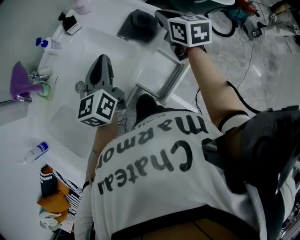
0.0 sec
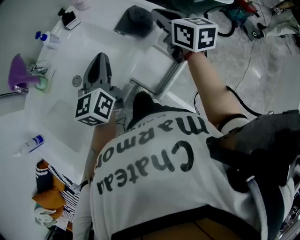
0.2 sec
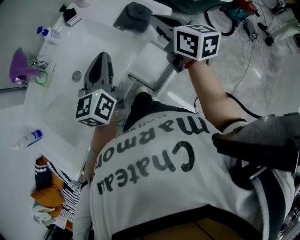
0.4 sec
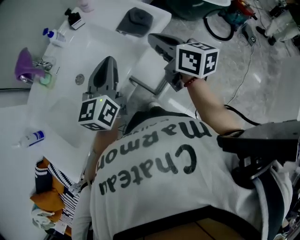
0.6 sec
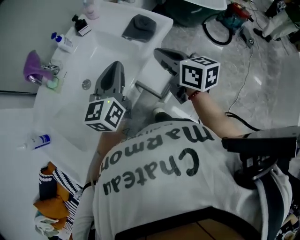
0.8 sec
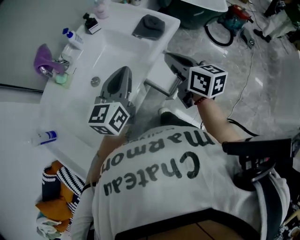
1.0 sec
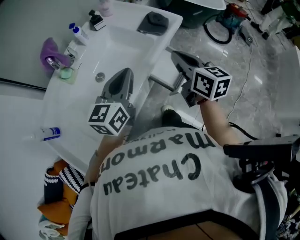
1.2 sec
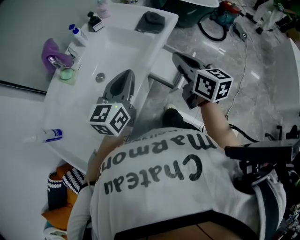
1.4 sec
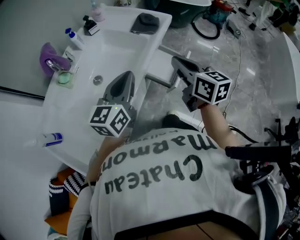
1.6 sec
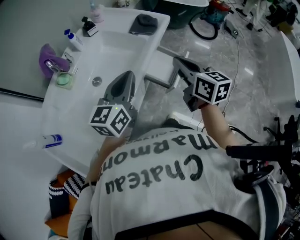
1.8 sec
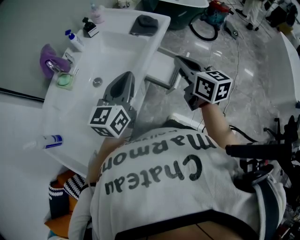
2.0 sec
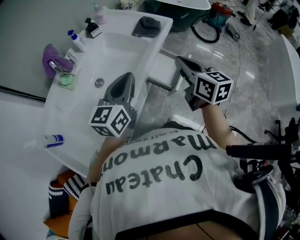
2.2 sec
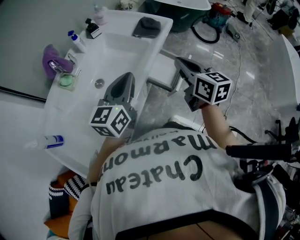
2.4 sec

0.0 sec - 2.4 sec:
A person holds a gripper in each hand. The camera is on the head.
0.0 sec - 1.2 sec: The left gripper is displaced backward by roughly 15 cm, and changes its angle by roughly 20 degrees; the right gripper travels backward by roughly 25 cm.
1.2 sec - 2.4 sec: The right gripper shifts approximately 5 cm backward.

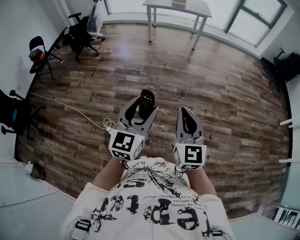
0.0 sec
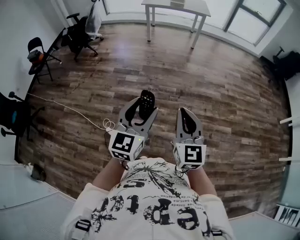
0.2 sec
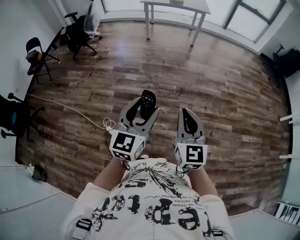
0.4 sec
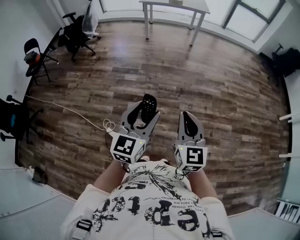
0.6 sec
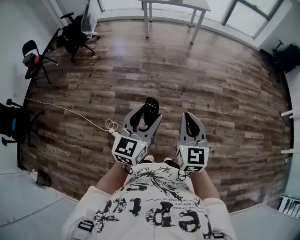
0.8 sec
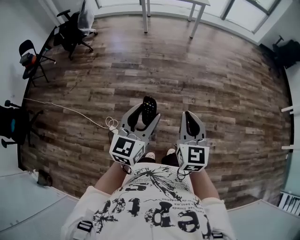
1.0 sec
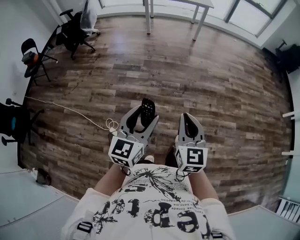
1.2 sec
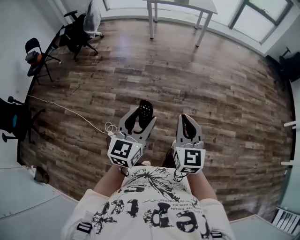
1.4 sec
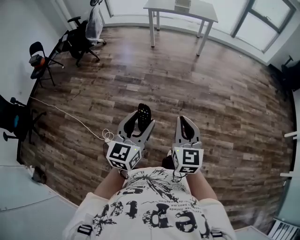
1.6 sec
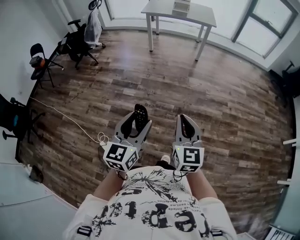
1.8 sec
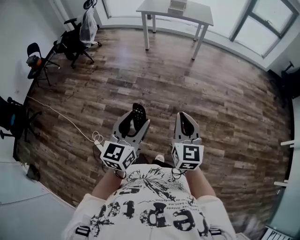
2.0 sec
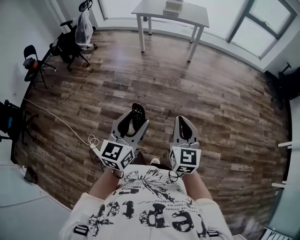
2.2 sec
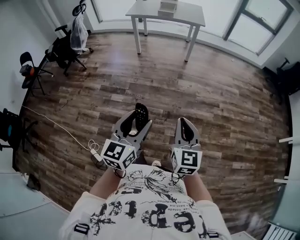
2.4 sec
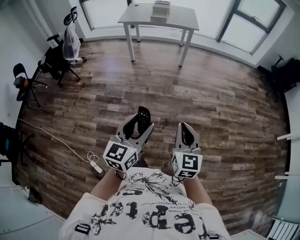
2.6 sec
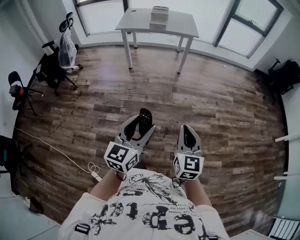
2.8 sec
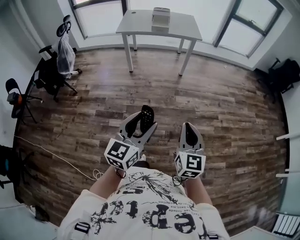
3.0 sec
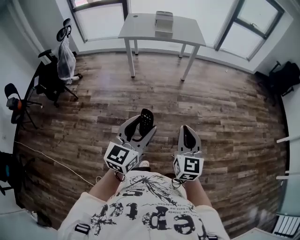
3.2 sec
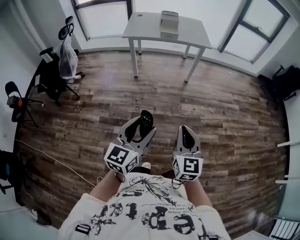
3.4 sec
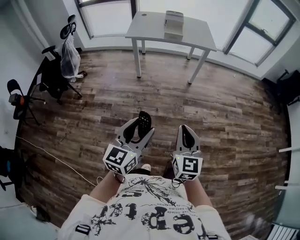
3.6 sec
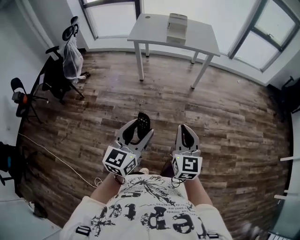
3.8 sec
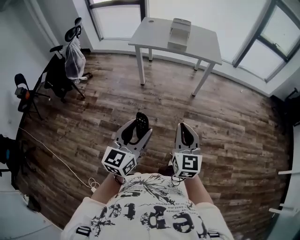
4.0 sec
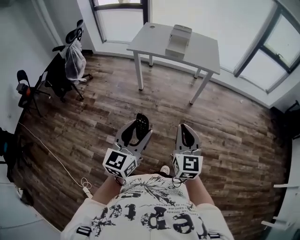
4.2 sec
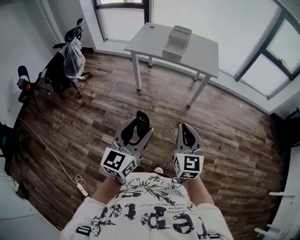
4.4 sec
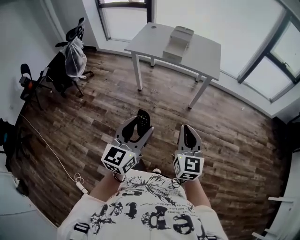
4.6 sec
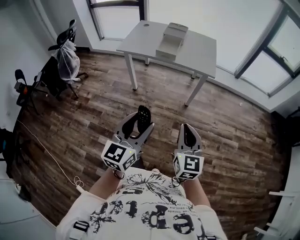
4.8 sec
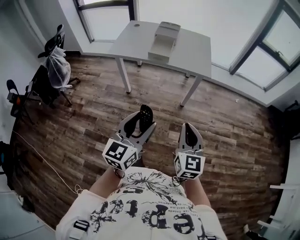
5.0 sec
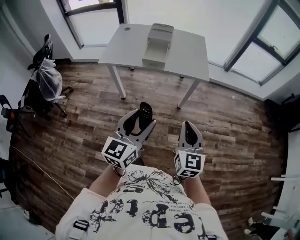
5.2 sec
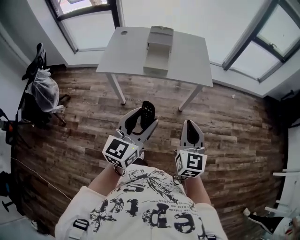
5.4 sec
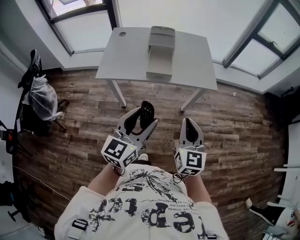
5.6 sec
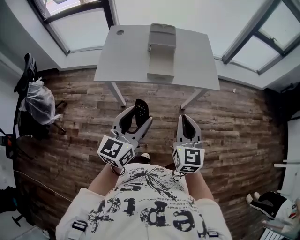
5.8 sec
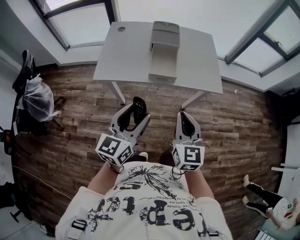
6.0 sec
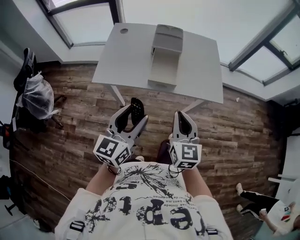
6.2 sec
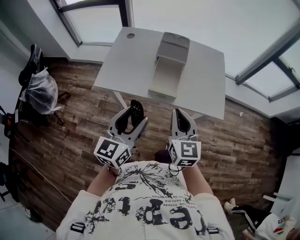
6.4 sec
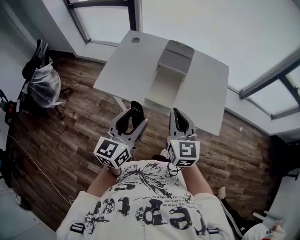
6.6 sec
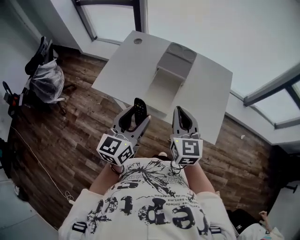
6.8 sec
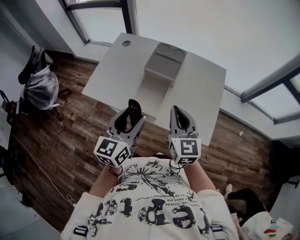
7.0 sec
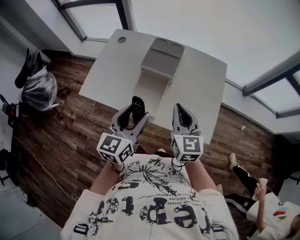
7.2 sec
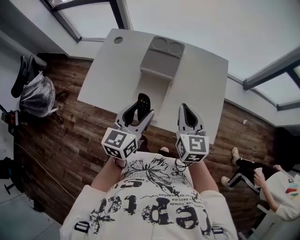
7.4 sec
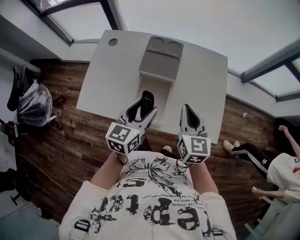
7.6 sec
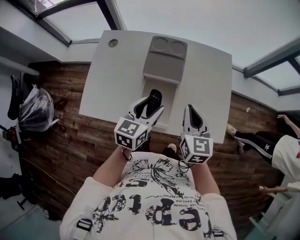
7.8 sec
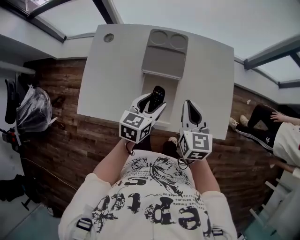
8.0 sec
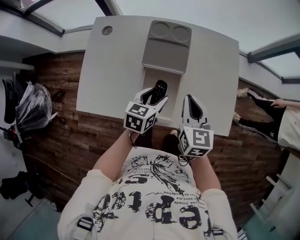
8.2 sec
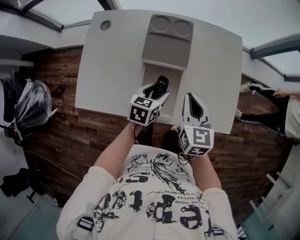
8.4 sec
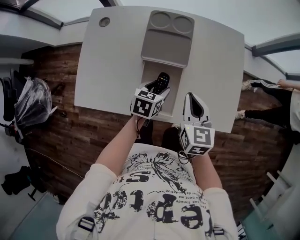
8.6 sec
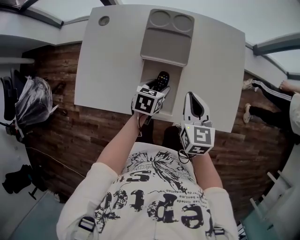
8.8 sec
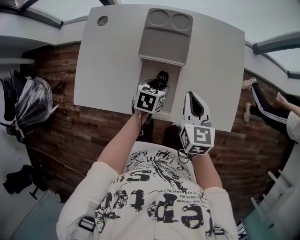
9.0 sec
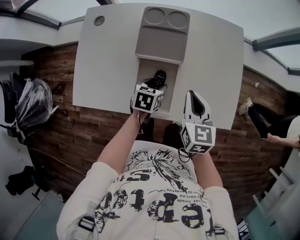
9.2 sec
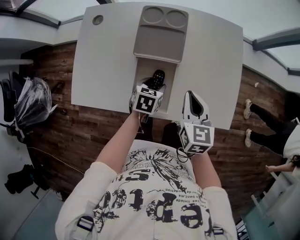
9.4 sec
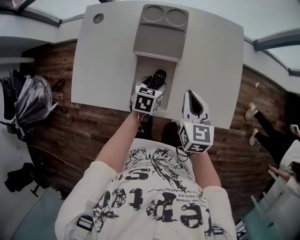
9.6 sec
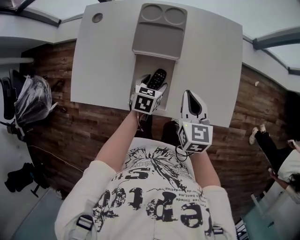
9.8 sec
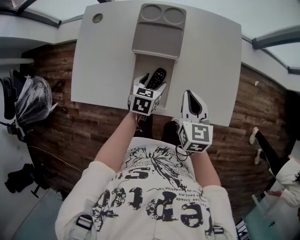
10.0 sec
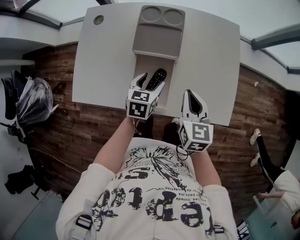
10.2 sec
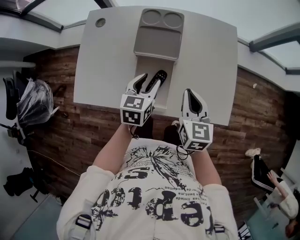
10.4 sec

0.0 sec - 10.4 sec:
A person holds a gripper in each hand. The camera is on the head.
0.0 sec - 1.4 sec: Both grippers move forward and downward, about 10 cm.
1.4 sec - 3.0 sec: The grippers both shift forward by about 40 cm.
3.0 sec - 4.4 sec: Both grippers travel together forward, approximately 30 cm.
4.4 sec - 6.0 sec: The pair of grippers is taken forward, roughly 50 cm.
6.0 sec - 7.4 sec: The two grippers go roughly 35 cm forward and to the right.
7.4 sec - 9.0 sec: The left gripper moves downward and forward, about 25 cm, and angles its fingers downward, by approximately 40 degrees. Meanwhile the right gripper travels downward and forward by approximately 10 cm.
9.0 sec - 10.4 sec: The left gripper shifts roughly 10 cm upward, and rotates some 20 degrees.

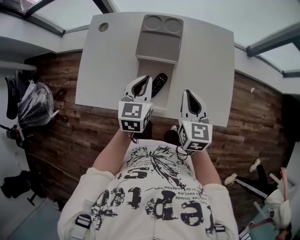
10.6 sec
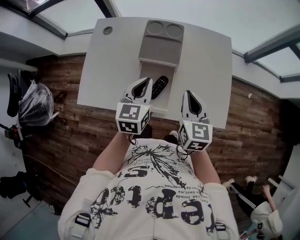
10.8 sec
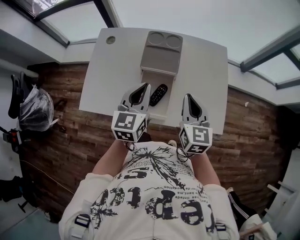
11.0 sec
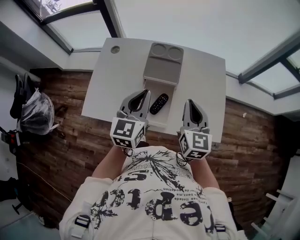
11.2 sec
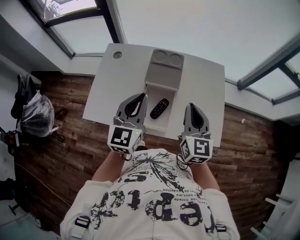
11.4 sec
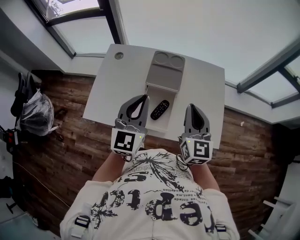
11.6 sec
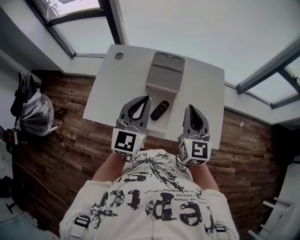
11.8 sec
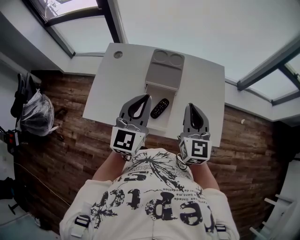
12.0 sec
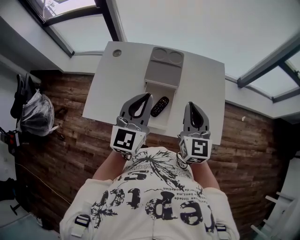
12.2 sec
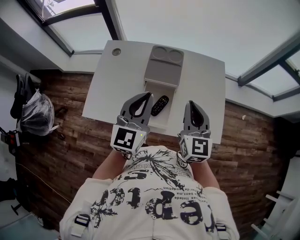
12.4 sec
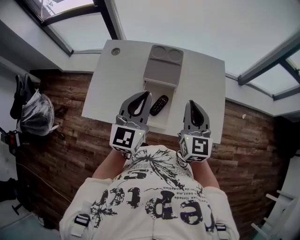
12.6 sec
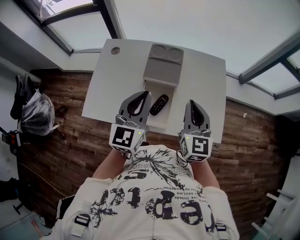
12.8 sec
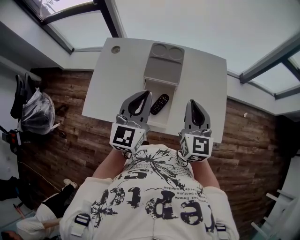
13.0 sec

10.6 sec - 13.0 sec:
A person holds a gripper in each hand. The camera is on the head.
10.6 sec - 11.8 sec: Both grippers move upward, roughly 15 cm. The left gripper turns by approximately 30 degrees. The right gripper rotates some 20 degrees.
11.8 sec - 13.0 sec: The grippers move only a little.

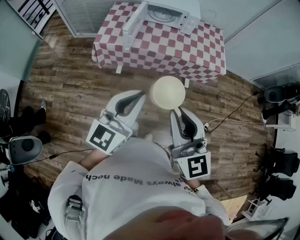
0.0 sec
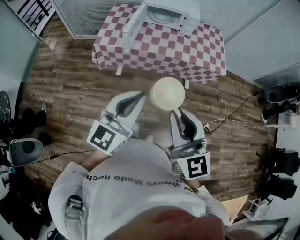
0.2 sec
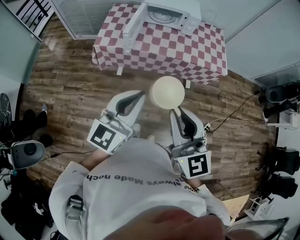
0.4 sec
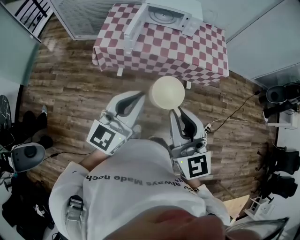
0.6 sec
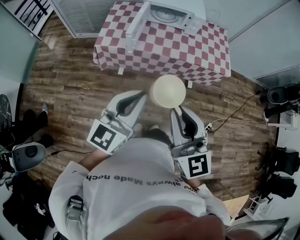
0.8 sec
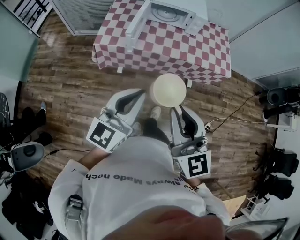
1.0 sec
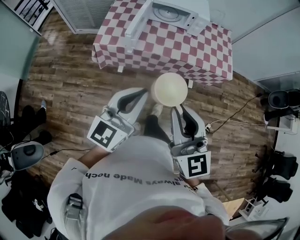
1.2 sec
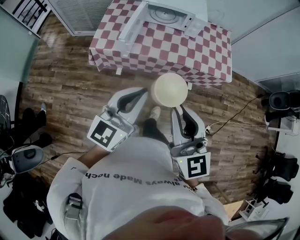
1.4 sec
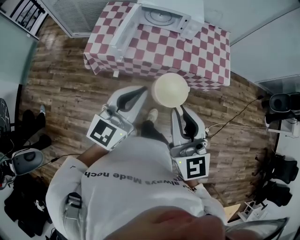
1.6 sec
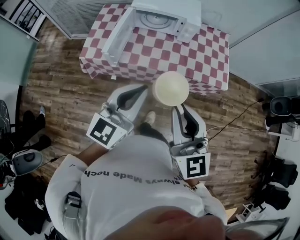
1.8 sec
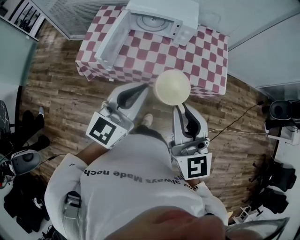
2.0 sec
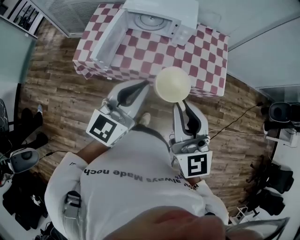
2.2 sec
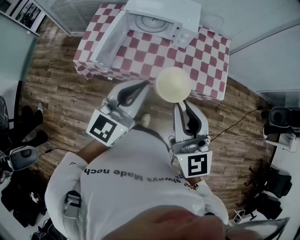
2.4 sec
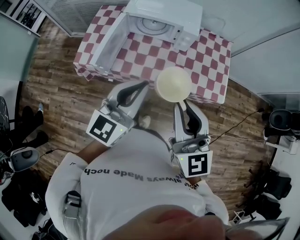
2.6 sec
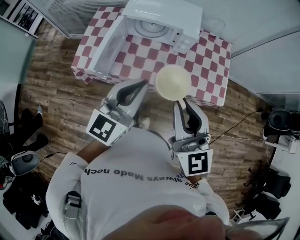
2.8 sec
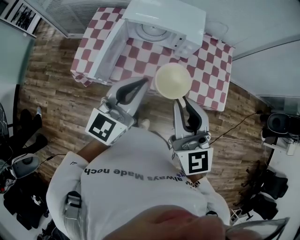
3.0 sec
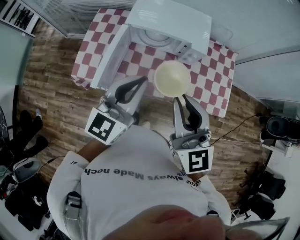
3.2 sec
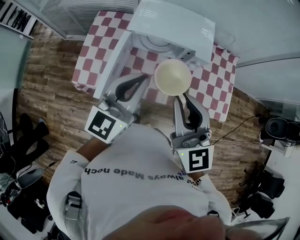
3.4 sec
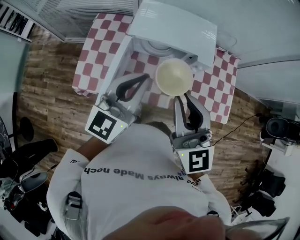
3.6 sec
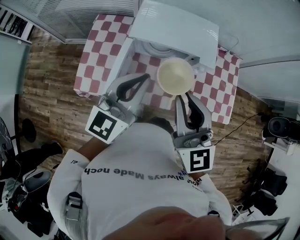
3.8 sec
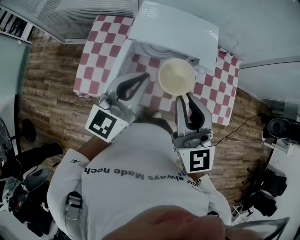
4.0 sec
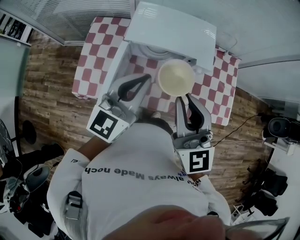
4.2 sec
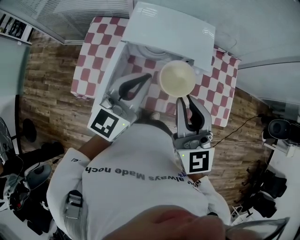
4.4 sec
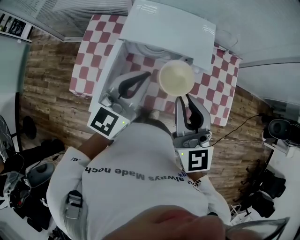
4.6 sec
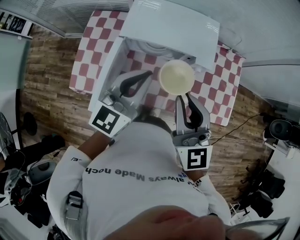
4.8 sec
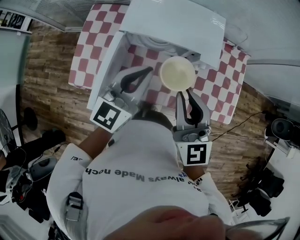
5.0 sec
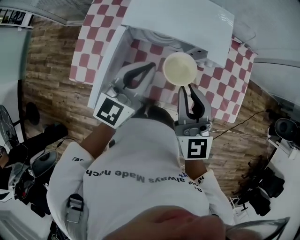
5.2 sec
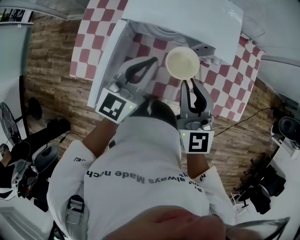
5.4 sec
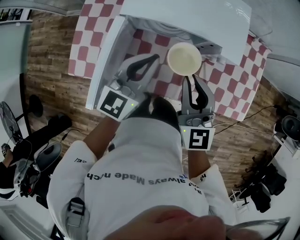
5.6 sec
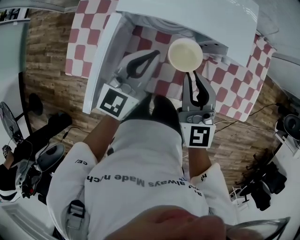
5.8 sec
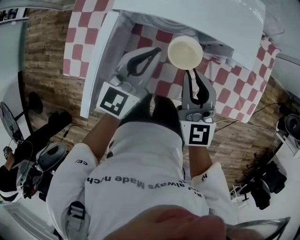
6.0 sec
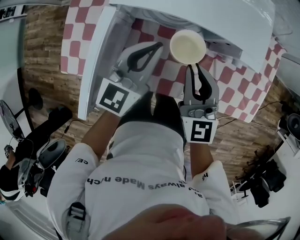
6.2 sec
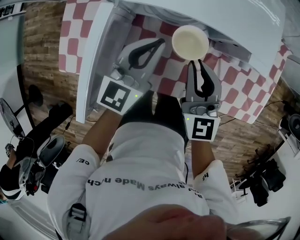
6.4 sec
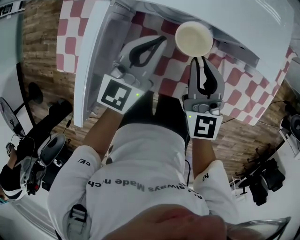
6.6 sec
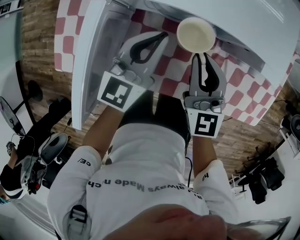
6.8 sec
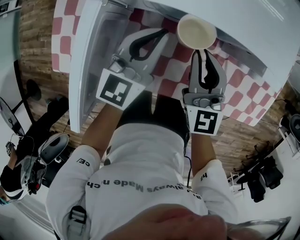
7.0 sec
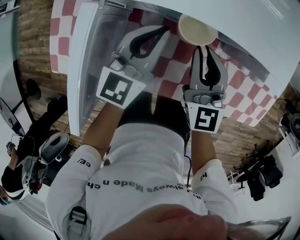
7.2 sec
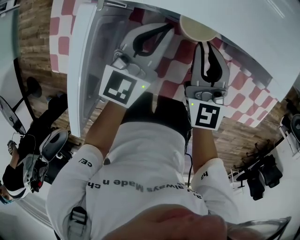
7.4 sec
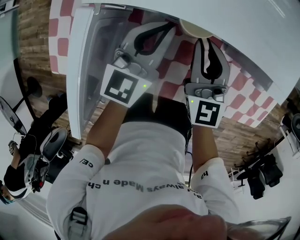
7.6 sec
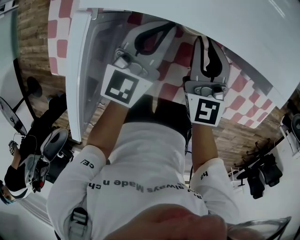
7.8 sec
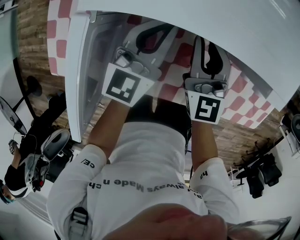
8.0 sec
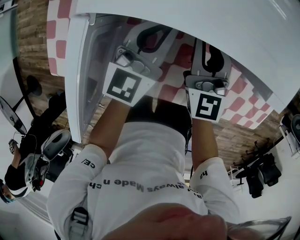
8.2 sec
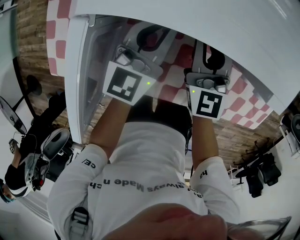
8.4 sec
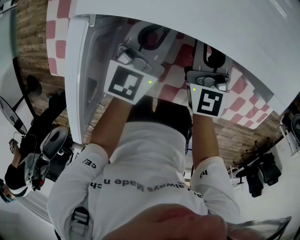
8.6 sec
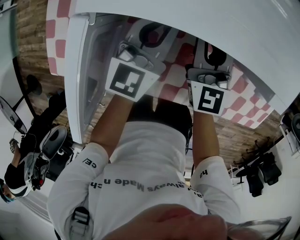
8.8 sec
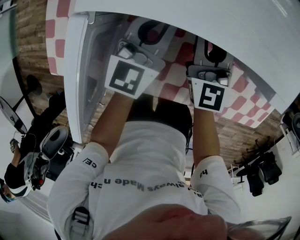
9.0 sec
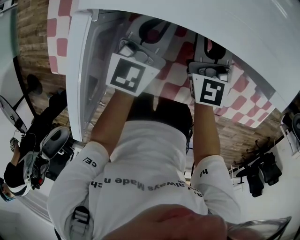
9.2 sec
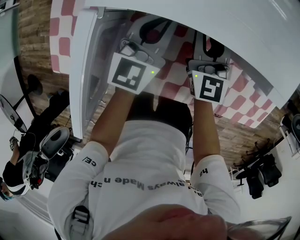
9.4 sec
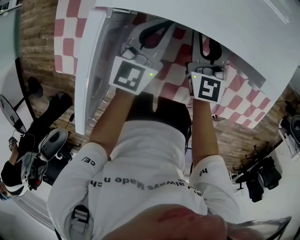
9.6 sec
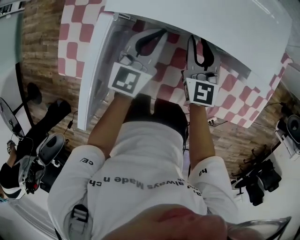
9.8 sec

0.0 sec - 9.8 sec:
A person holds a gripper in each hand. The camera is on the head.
0.0 sec - 1.4 sec: Both grippers move forward, about 15 cm.
1.4 sec - 2.8 sec: The grippers both shift forward and to the right by approximately 30 cm.
2.8 sec - 4.2 sec: The two grippers go roughly 25 cm forward and to the left.
4.2 sec - 5.6 sec: The grippers both shift downward and forward by about 20 cm.
5.6 sec - 7.0 sec: The grippers both shift downward and forward by roughly 20 cm.
7.0 sec - 8.4 sec: The right gripper is displaced forward and downward by some 10 cm. The left gripper heads forward, covering about 5 cm.
8.4 sec - 9.8 sec: The left gripper shifts by about 5 cm, while the right gripper moves approximately 5 cm.
